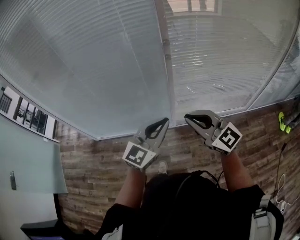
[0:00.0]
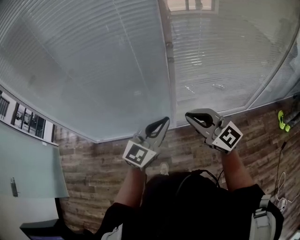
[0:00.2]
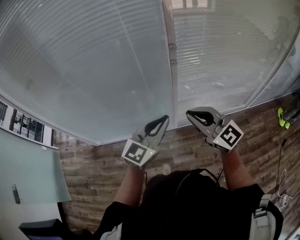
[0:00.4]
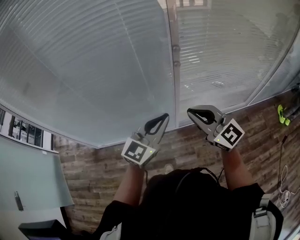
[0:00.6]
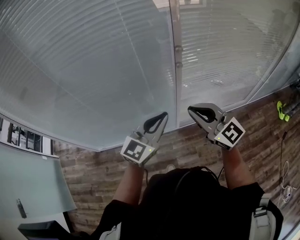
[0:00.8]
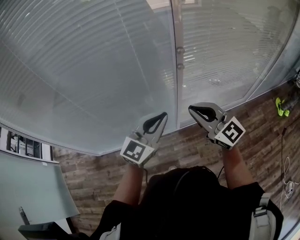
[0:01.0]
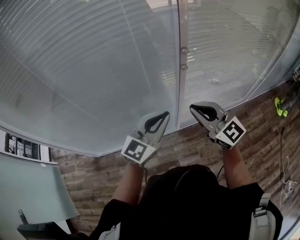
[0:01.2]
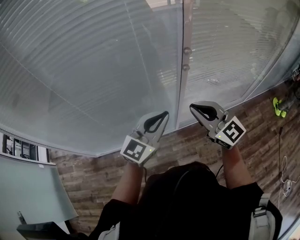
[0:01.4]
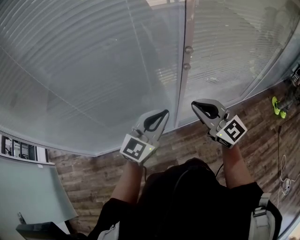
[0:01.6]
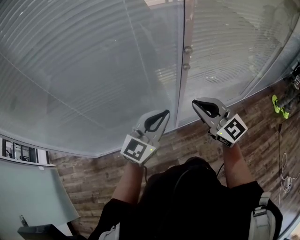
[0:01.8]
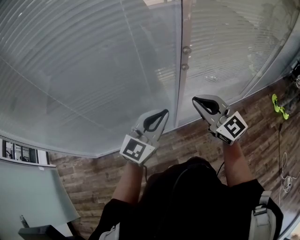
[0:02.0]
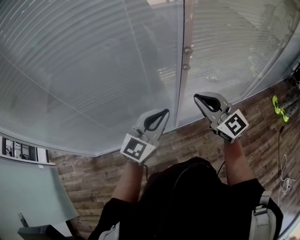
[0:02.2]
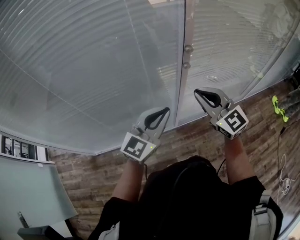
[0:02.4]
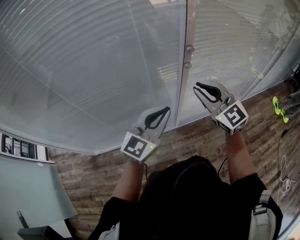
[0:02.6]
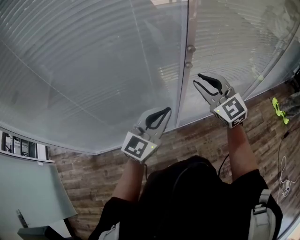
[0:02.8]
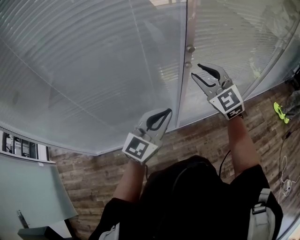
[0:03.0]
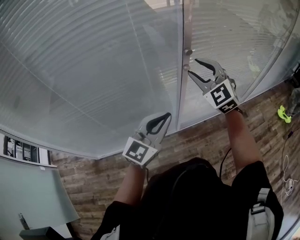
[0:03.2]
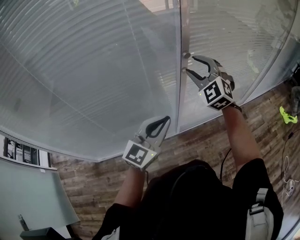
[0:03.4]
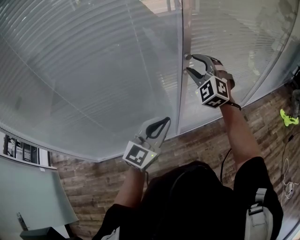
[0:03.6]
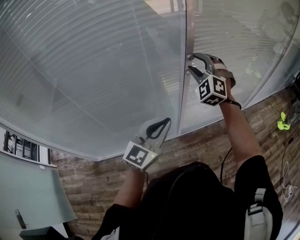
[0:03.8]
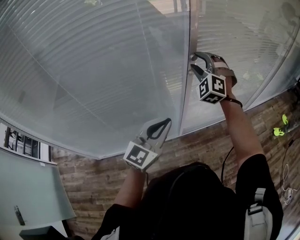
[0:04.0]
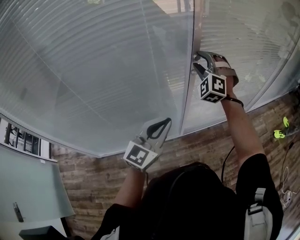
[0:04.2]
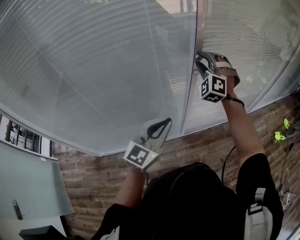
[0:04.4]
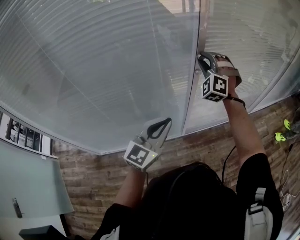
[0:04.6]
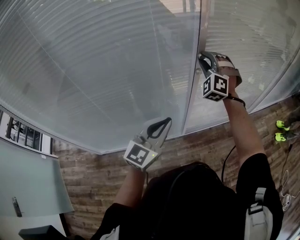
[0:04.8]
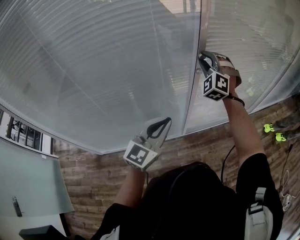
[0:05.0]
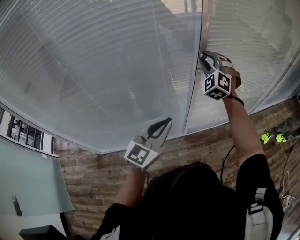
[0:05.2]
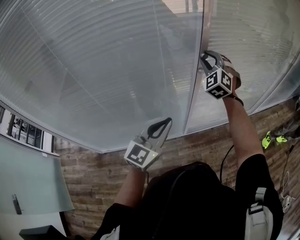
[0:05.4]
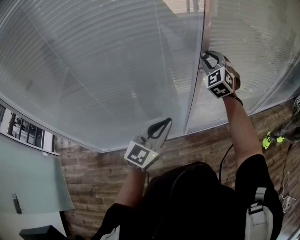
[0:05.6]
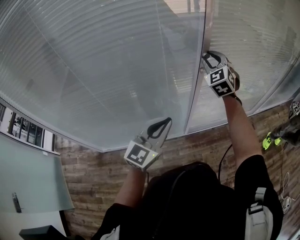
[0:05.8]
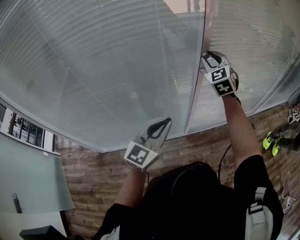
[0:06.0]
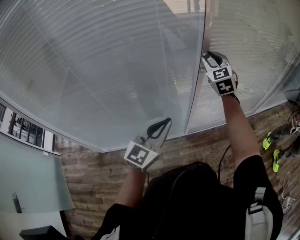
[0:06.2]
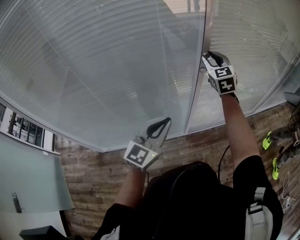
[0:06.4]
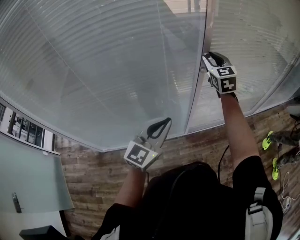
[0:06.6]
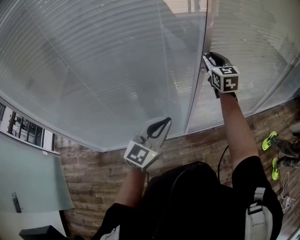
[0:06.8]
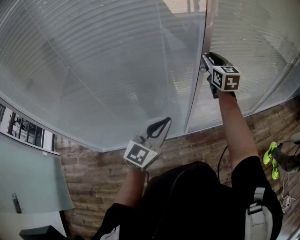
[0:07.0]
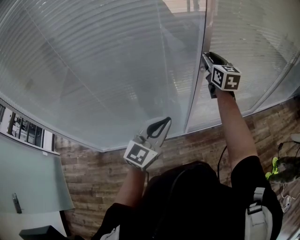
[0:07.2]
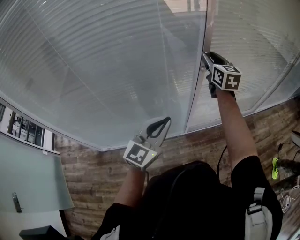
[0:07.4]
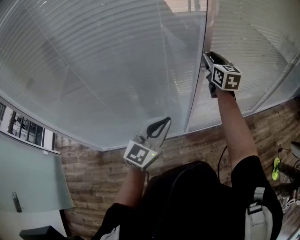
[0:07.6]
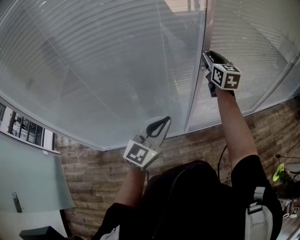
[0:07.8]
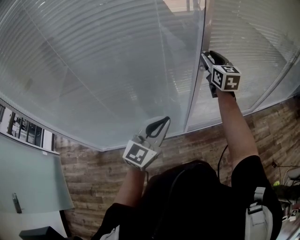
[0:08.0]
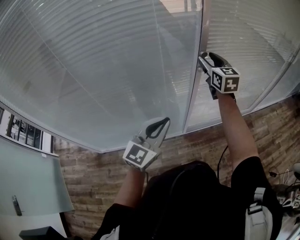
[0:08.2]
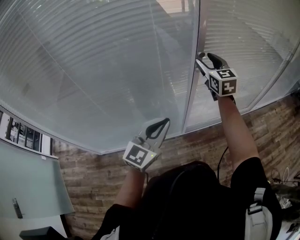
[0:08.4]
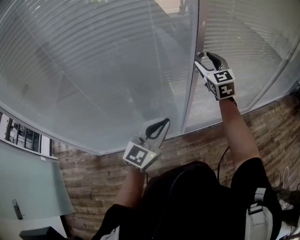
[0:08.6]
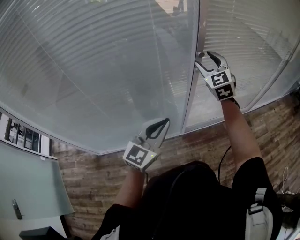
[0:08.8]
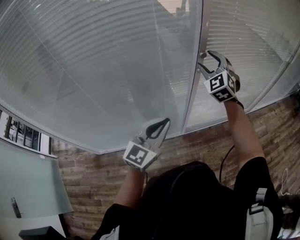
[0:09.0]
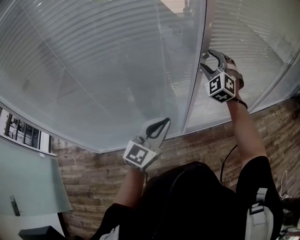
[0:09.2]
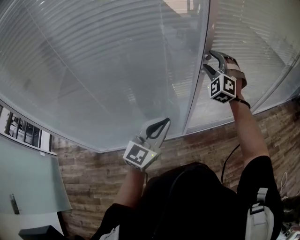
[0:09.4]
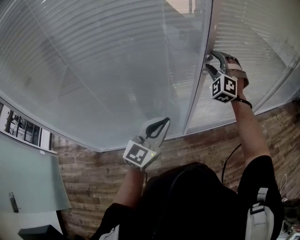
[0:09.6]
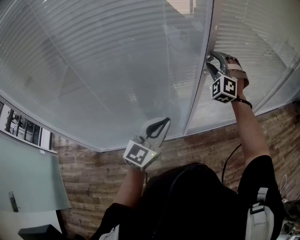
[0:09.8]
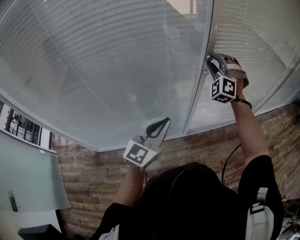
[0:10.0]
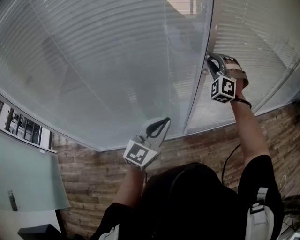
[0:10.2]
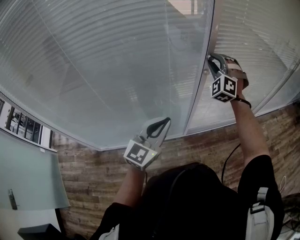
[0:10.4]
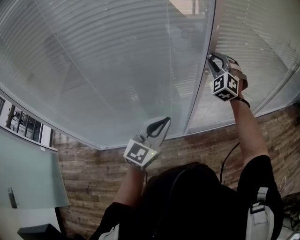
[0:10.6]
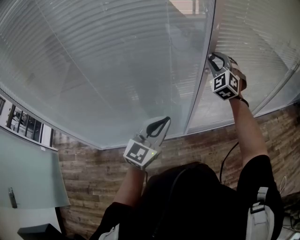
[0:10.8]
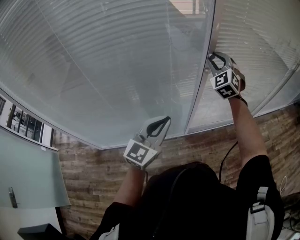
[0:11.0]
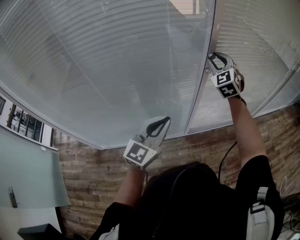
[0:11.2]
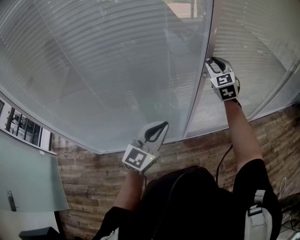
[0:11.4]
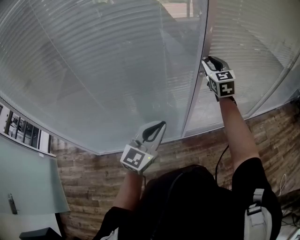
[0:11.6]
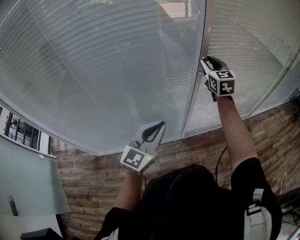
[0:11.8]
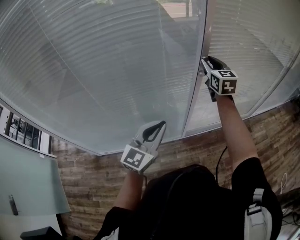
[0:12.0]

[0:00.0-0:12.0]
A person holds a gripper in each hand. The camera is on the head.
0:00.0 to 0:01.6: The grippers both shift forward and to the left by some 20 cm.
0:01.6 to 0:03.0: The right gripper shifts about 10 cm forward, changes its angle by approximately 30 degrees, and opens.
0:03.0 to 0:04.4: The right gripper goes approximately 10 cm forward, and rolls counterclockwise, seen from behind, by some 40 degrees.
0:04.4 to 0:06.0: The right gripper swivels approximately 40 degrees.
0:06.0 to 0:07.6: The right gripper rolls clockwise, seen from behind, by approximately 40 degrees.
0:07.6 to 0:09.0: The right gripper rolls counterclockwise, seen from behind, by approximately 50 degrees, and opens its fingers.
0:09.0 to 0:10.4: The right gripper swivels roughly 30 degrees, and closes.
0:10.4 to 0:12.0: The right gripper rolls clockwise, seen from behind, by roughly 70 degrees.

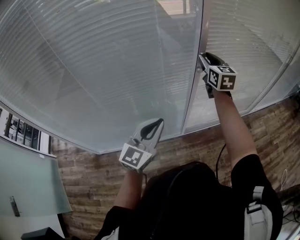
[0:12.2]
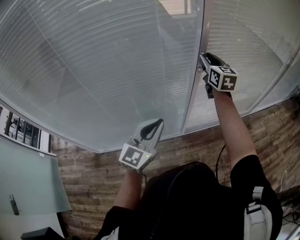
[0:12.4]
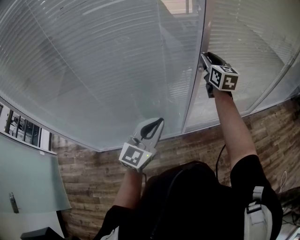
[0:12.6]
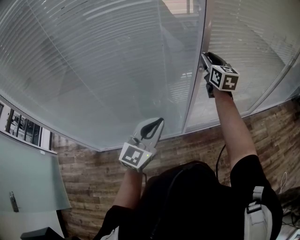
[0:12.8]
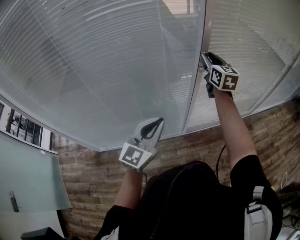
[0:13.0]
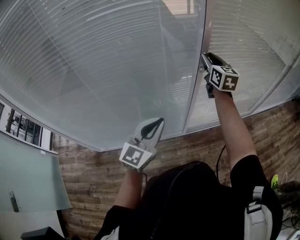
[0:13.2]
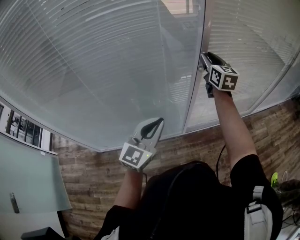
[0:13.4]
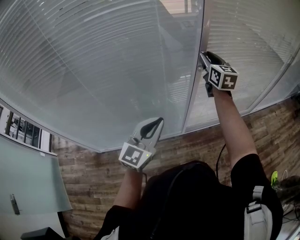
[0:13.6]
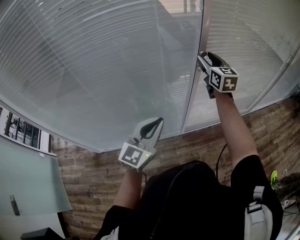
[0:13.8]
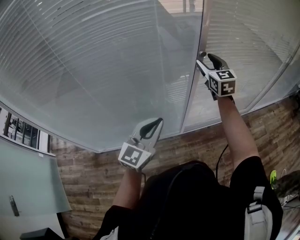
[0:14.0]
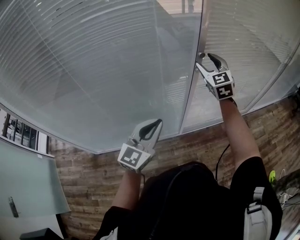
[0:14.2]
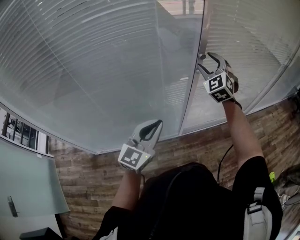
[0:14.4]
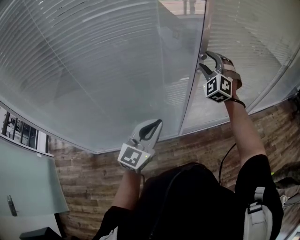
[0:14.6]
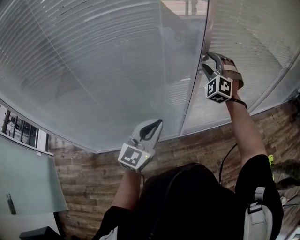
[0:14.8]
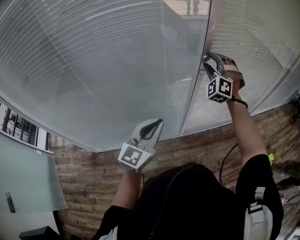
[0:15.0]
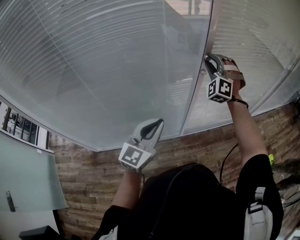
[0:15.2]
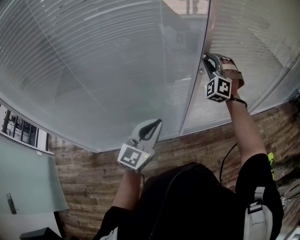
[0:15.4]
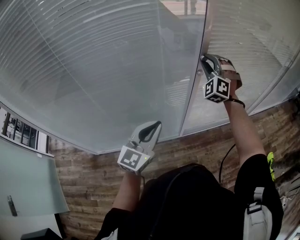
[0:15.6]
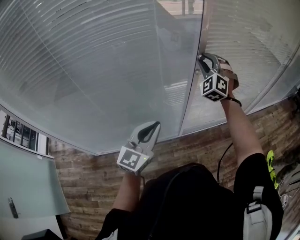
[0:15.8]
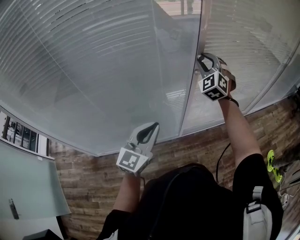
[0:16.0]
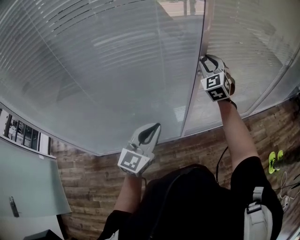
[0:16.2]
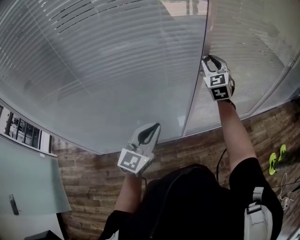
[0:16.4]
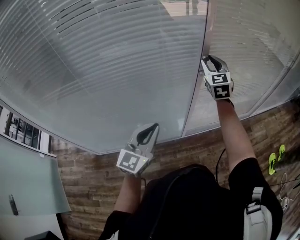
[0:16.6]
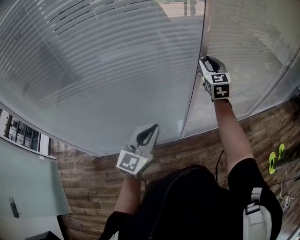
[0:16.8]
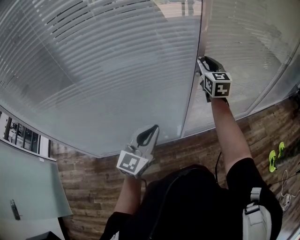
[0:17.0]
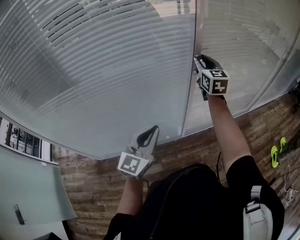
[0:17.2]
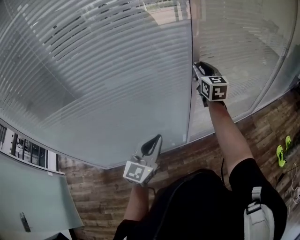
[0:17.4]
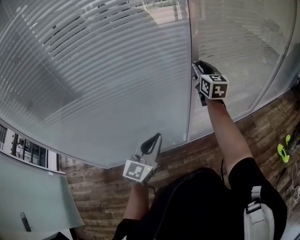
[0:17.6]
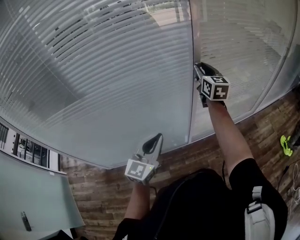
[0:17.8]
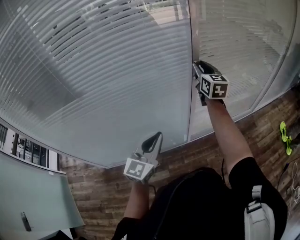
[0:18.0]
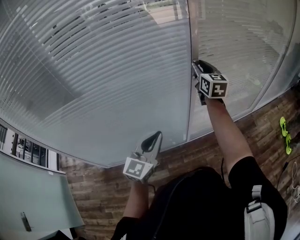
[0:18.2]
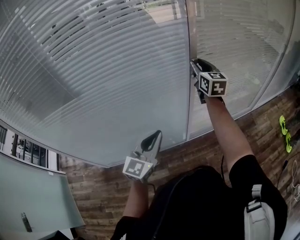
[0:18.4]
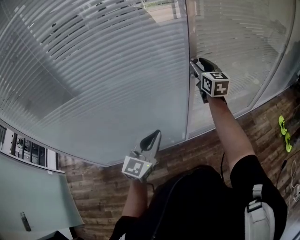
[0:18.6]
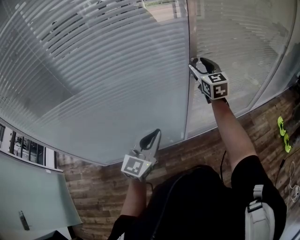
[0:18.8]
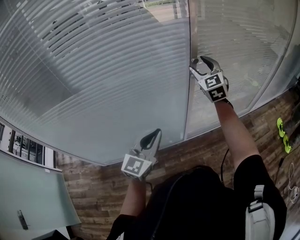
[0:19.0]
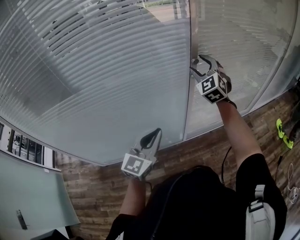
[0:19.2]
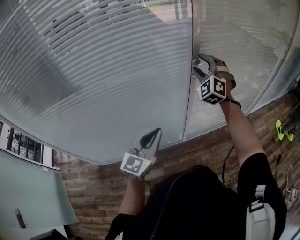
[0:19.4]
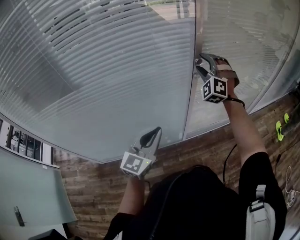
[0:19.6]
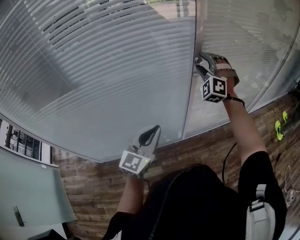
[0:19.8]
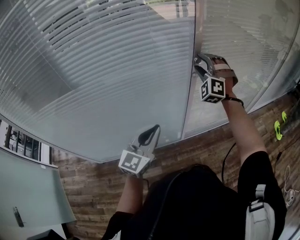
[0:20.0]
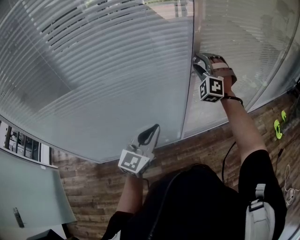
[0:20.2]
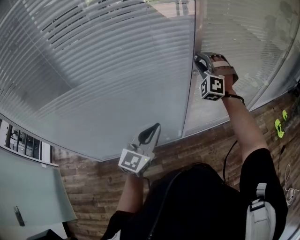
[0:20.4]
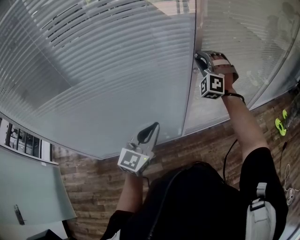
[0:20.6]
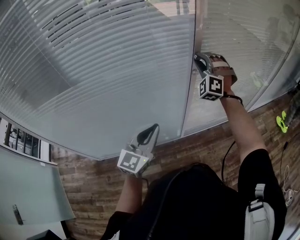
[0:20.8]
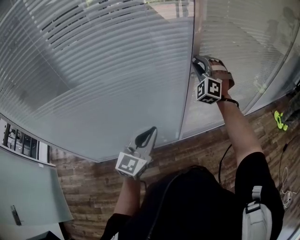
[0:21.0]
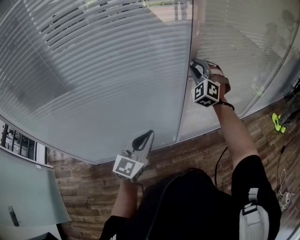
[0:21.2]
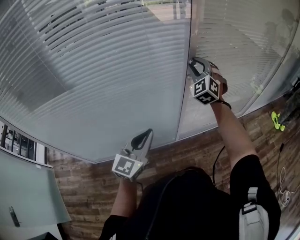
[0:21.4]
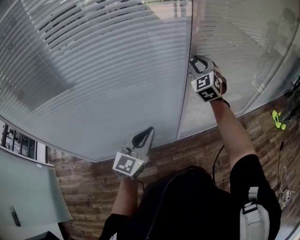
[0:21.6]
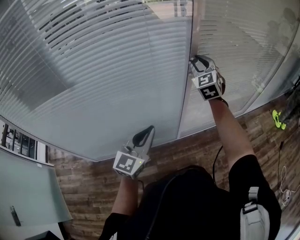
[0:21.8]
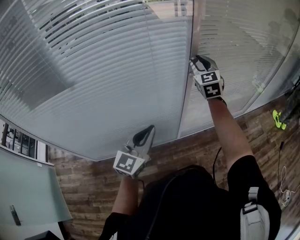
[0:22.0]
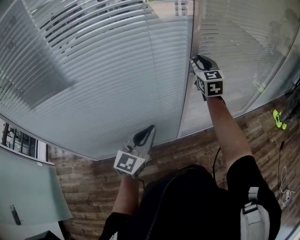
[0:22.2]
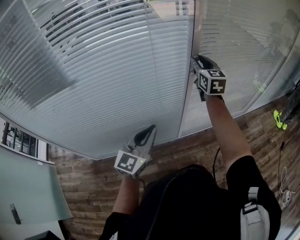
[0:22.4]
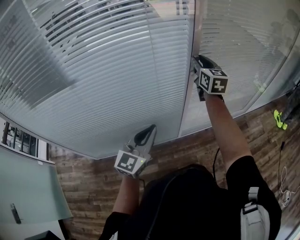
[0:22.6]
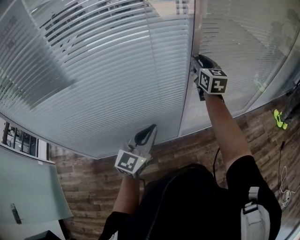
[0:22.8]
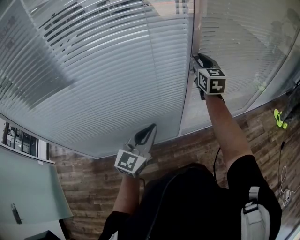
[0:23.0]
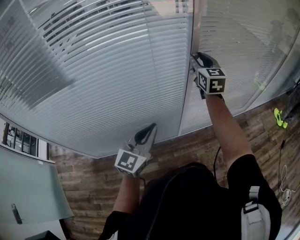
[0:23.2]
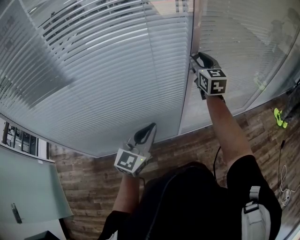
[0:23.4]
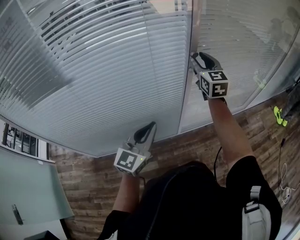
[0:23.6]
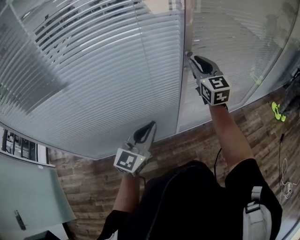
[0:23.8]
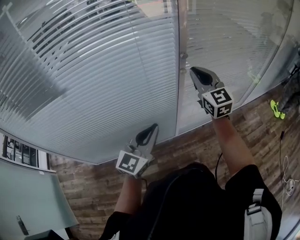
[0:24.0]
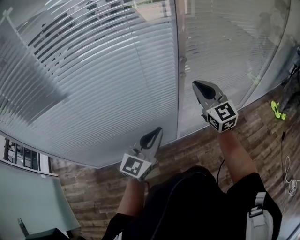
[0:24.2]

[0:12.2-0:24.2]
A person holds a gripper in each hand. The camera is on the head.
0:12.2 to 0:13.8: The right gripper opens its fingers.
0:13.8 to 0:15.2: The right gripper twists roughly 80 degrees counterclockwise, seen from behind.
0:15.2 to 0:16.6: The right gripper rolls clockwise, seen from behind, by approximately 60 degrees.
0:16.6 to 0:18.2: The right gripper turns by about 30 degrees.
0:18.2 to 0:19.8: The right gripper rolls counterclockwise, seen from behind, by about 80 degrees, and opens.
0:19.8 to 0:21.2: The right gripper closes.
0:21.2 to 0:22.6: The right gripper rolls clockwise, seen from behind, by about 70 degrees.
0:22.6 to 0:24.2: The right gripper heads backward, covering roughly 15 cm, rotates roughly 20 degrees, and closes up; the left gripper travels to the right by some 5 cm.
